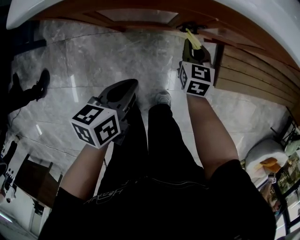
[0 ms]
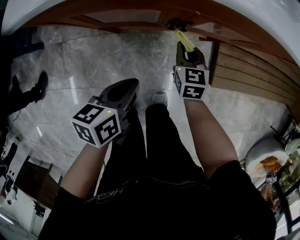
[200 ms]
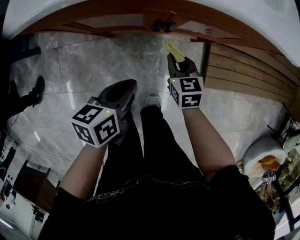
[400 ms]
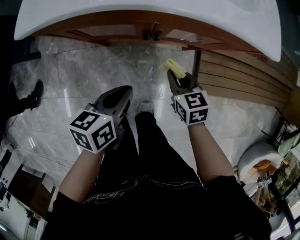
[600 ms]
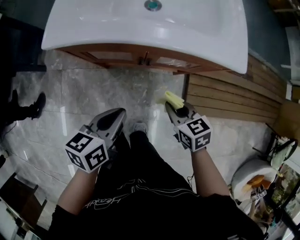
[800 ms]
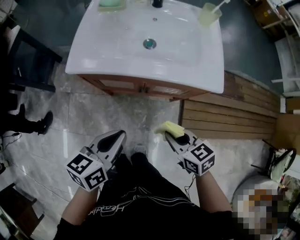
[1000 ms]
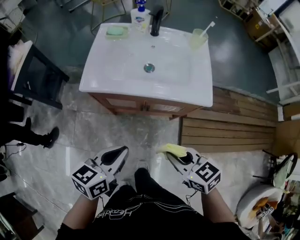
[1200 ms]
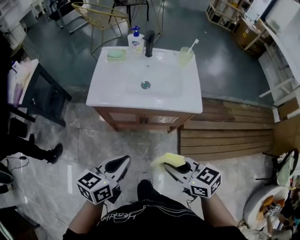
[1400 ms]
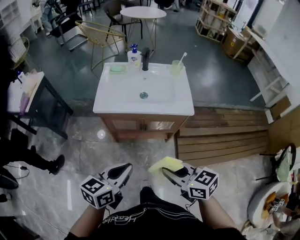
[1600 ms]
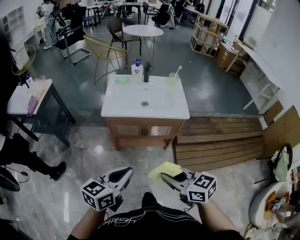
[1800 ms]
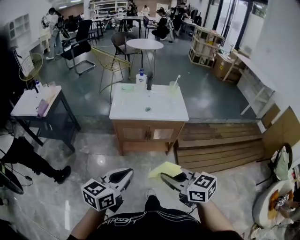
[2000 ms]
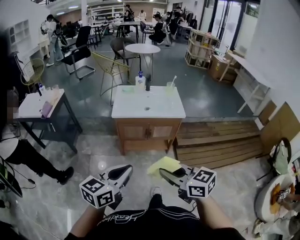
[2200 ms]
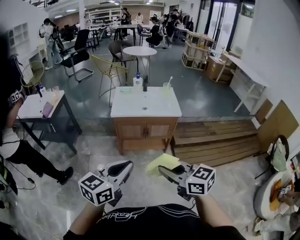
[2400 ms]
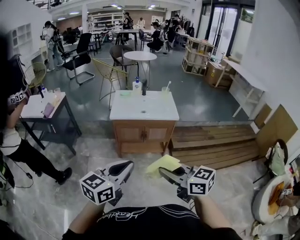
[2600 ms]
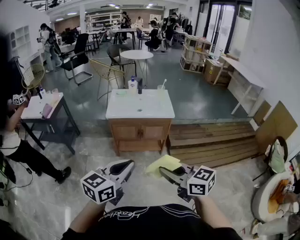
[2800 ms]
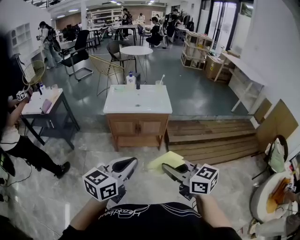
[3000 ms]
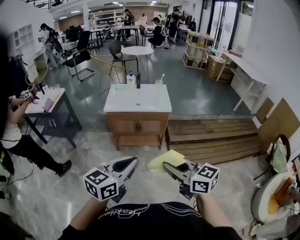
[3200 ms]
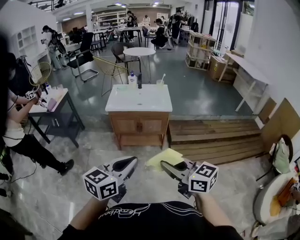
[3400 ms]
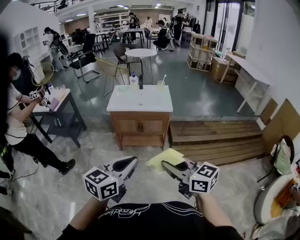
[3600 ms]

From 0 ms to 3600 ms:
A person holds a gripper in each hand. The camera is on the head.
From 0 ms to 1800 ms: Both grippers move upward, roughly 50 cm. The right gripper swivels some 40 degrees. The left gripper swivels approximately 40 degrees.
From 1800 ms to 3600 ms: Both grippers move backward and upward, roughly 30 cm.

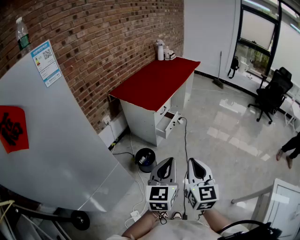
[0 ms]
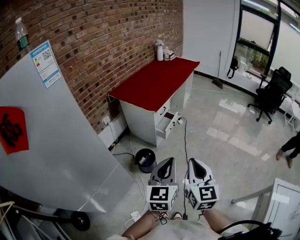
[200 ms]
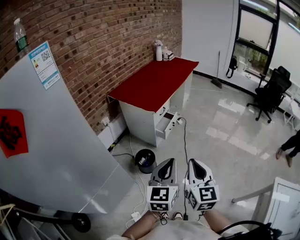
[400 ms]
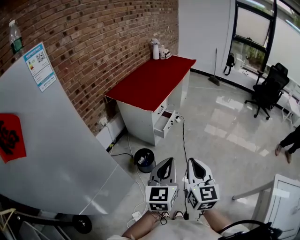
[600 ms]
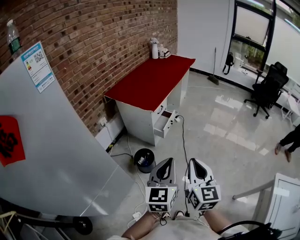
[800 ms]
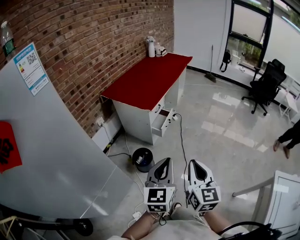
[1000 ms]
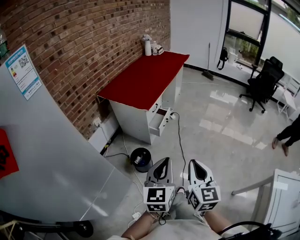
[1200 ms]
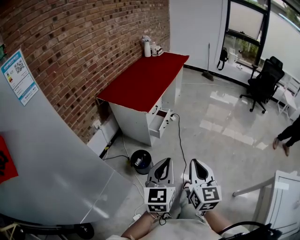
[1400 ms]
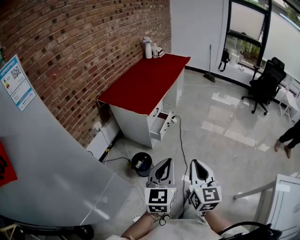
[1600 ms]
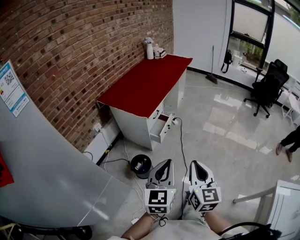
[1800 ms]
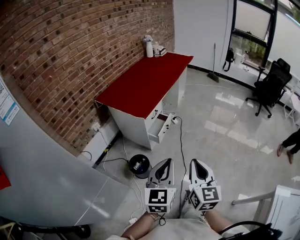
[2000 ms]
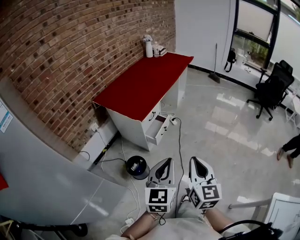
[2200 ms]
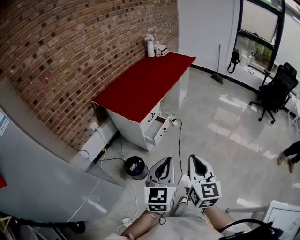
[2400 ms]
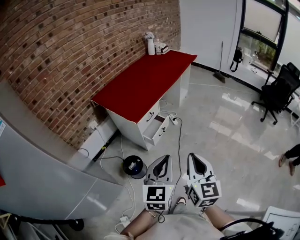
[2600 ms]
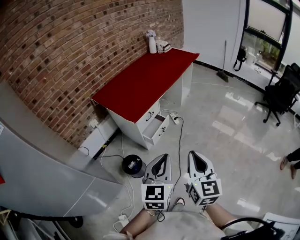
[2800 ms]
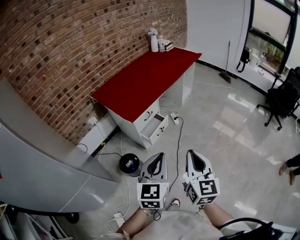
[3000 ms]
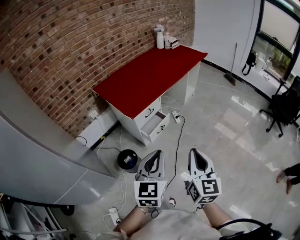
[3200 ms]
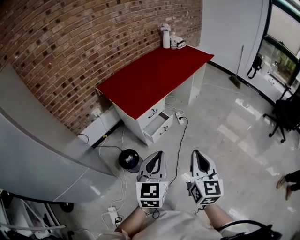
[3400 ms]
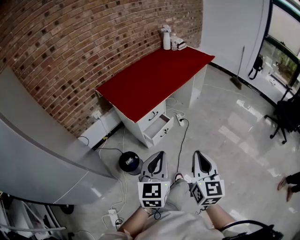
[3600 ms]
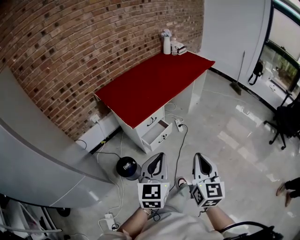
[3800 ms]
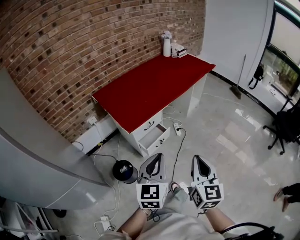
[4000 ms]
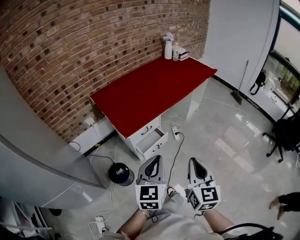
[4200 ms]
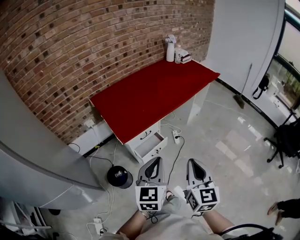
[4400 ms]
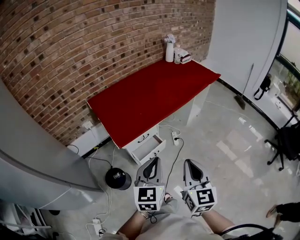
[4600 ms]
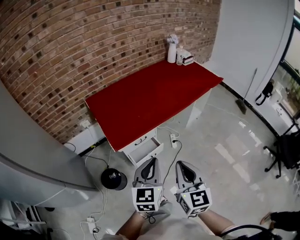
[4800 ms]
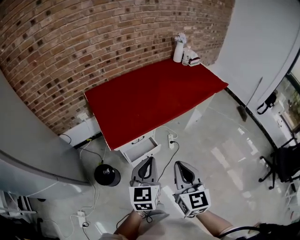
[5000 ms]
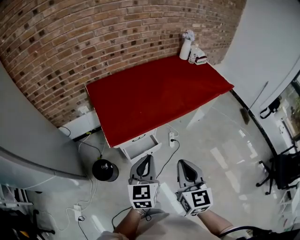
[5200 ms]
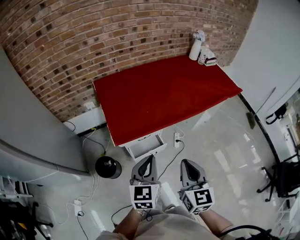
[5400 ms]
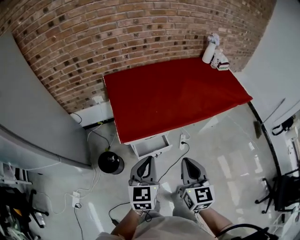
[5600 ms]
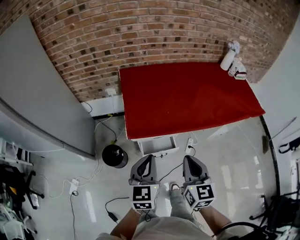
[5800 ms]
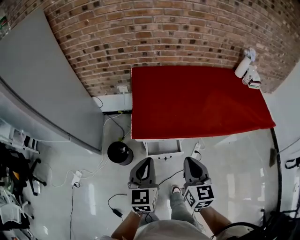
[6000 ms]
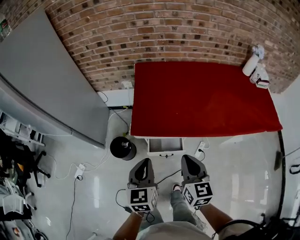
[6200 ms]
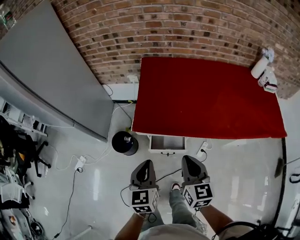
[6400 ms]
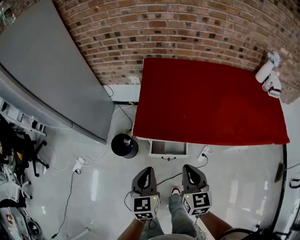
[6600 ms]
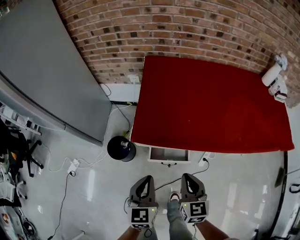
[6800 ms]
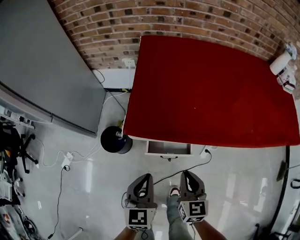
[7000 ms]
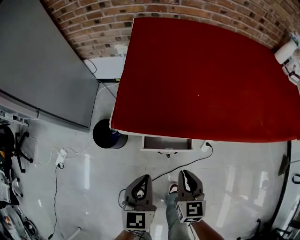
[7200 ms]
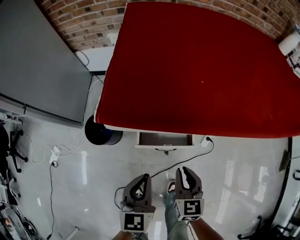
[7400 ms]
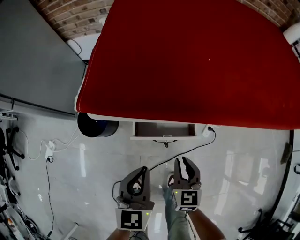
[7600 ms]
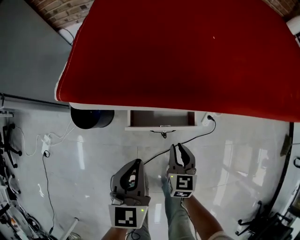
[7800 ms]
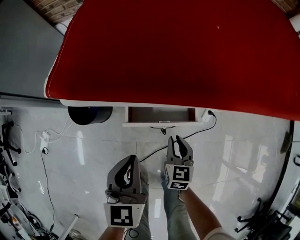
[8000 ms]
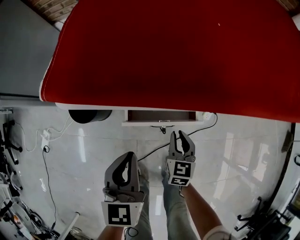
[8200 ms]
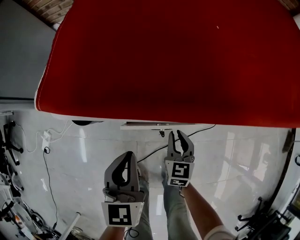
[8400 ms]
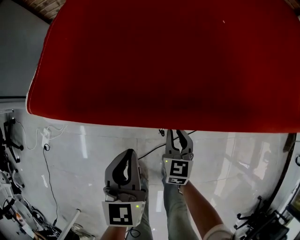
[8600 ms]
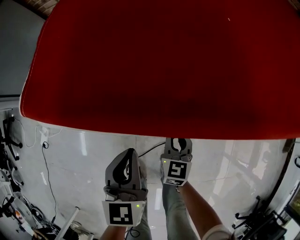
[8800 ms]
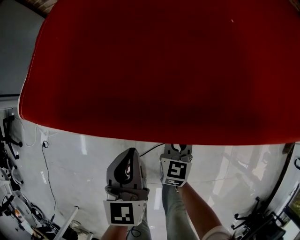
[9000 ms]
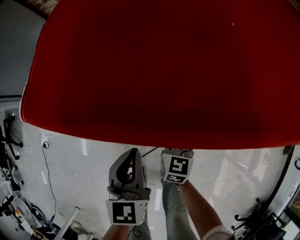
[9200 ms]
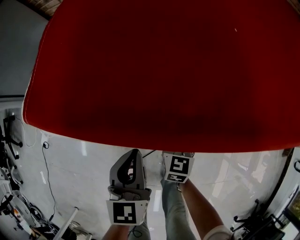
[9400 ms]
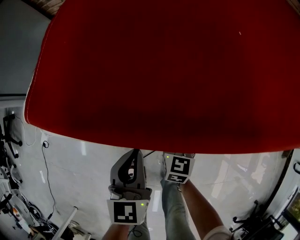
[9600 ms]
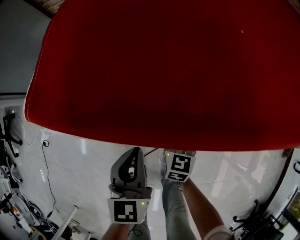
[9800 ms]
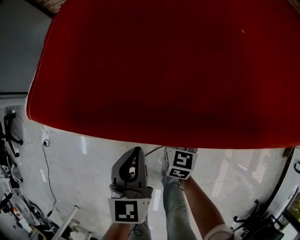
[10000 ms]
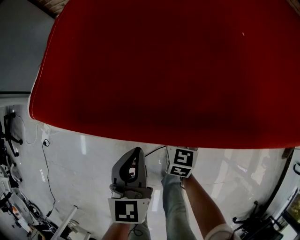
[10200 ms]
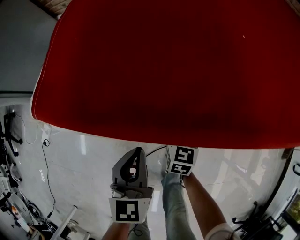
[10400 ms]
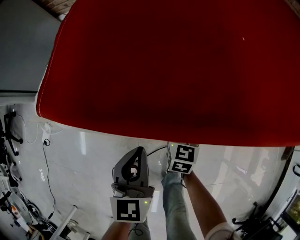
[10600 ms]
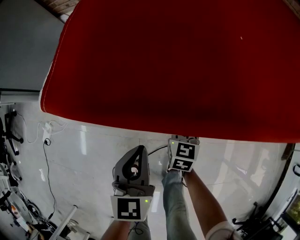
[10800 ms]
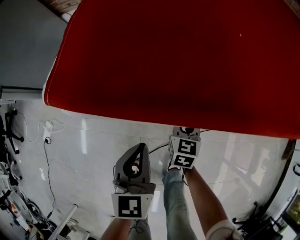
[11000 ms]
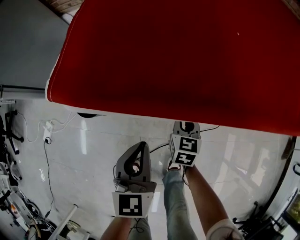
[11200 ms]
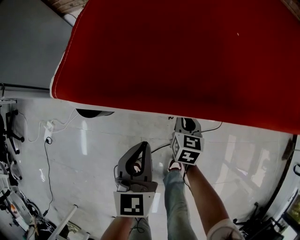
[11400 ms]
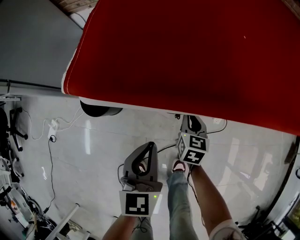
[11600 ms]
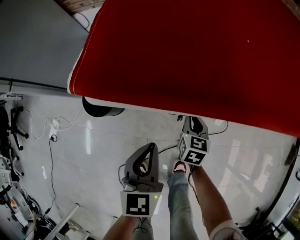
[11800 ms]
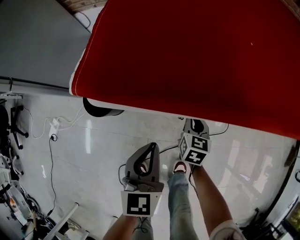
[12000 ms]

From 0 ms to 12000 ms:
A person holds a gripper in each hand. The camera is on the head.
From 0 ms to 1600 ms: The grippers both shift forward by about 5 cm.
From 1600 ms to 3000 ms: The grippers both shift forward and to the right by some 25 cm.
From 3000 ms to 4400 ms: The two grippers go about 20 cm forward.
From 4400 ms to 6000 ms: The left gripper changes place by roughly 15 cm, and changes its angle by roughly 40 degrees, while the right gripper moves roughly 25 cm, and swivels about 40 degrees.
From 6000 ms to 7600 ms: Both grippers travel together downward, roughly 40 cm.
From 7600 ms to 9000 ms: The right gripper shifts some 10 cm downward and forward. The left gripper shifts by about 5 cm.
From 9000 ms to 10400 ms: The right gripper heads forward, covering some 5 cm.
From 10400 ms to 12000 ms: There are only small adjustments of the grippers.

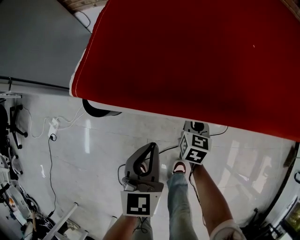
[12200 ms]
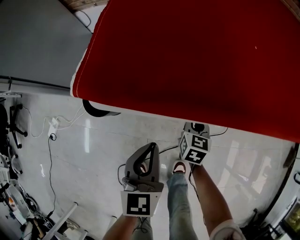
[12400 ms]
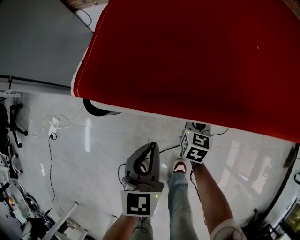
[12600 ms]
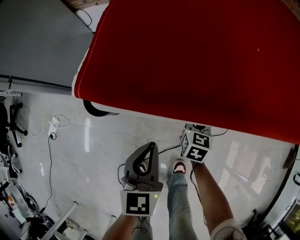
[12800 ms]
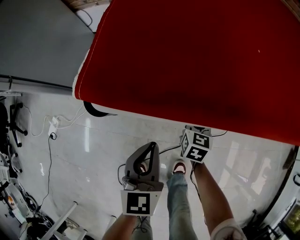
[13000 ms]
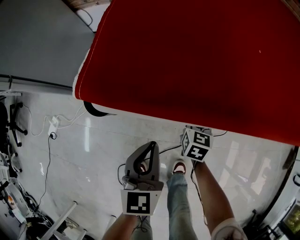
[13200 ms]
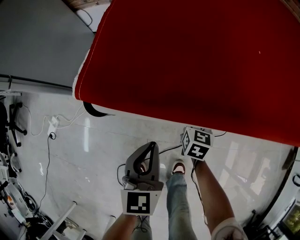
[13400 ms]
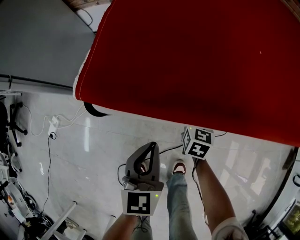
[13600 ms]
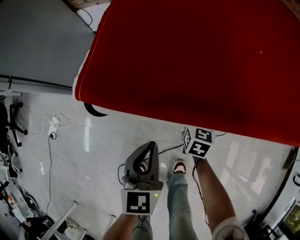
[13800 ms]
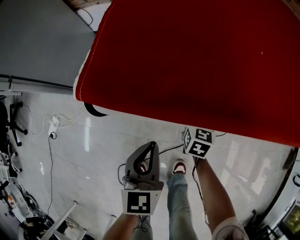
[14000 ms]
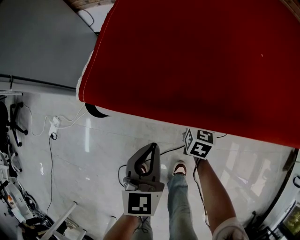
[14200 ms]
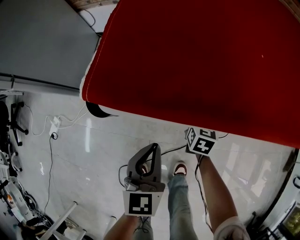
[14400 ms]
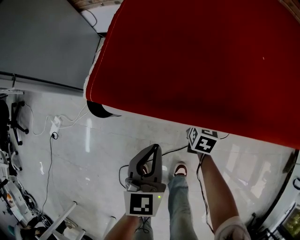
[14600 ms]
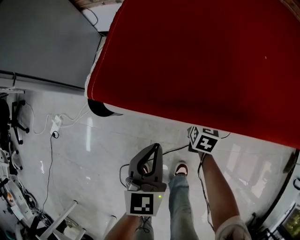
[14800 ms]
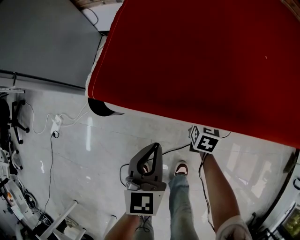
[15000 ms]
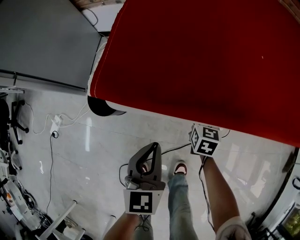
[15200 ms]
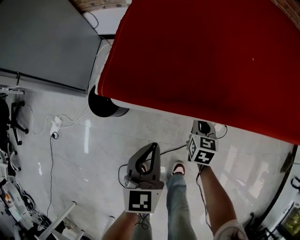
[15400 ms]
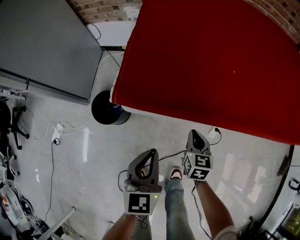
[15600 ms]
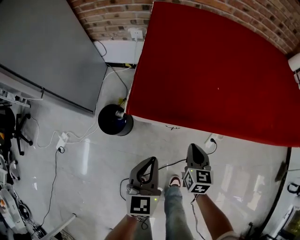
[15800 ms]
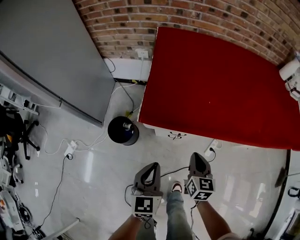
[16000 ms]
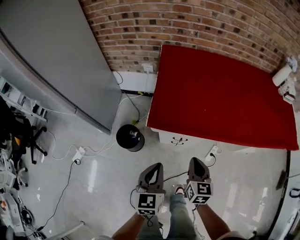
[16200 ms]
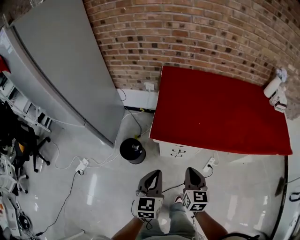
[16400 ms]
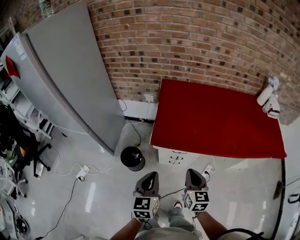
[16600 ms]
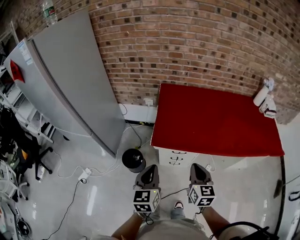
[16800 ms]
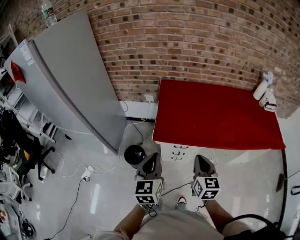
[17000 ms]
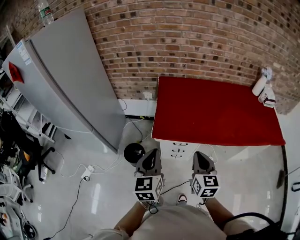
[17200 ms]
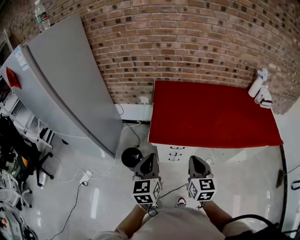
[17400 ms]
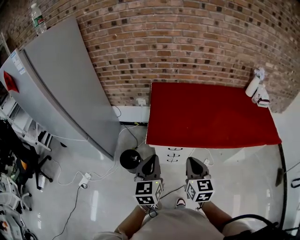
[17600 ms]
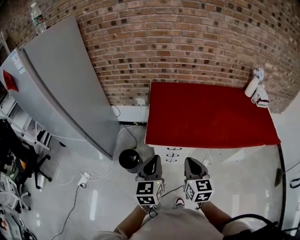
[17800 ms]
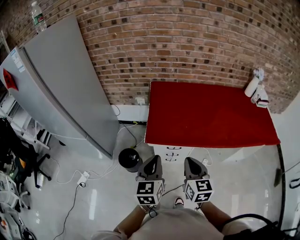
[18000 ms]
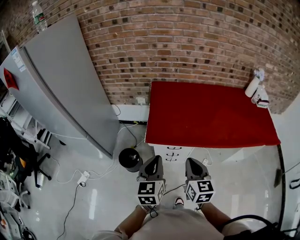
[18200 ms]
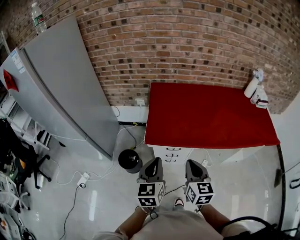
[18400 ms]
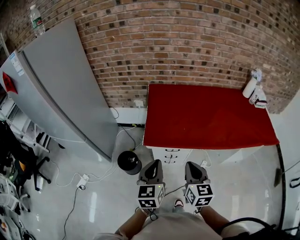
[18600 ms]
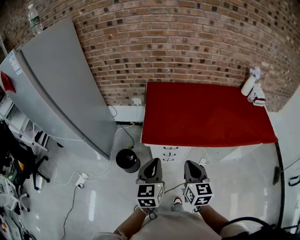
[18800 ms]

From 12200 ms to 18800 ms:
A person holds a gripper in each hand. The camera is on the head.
From 12200 ms to 15400 ms: The grippers move only a little.
From 15400 ms to 17200 ms: Both grippers travel together upward, some 50 cm. The right gripper rotates approximately 30 degrees.
From 17200 ms to 18800 ms: The left gripper is displaced to the right by about 5 cm.

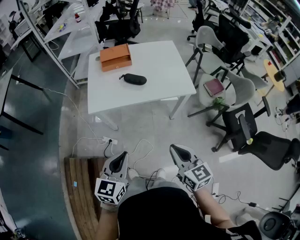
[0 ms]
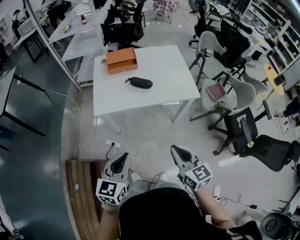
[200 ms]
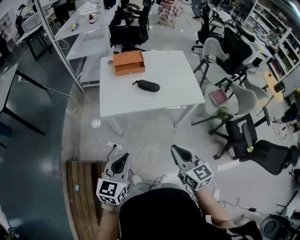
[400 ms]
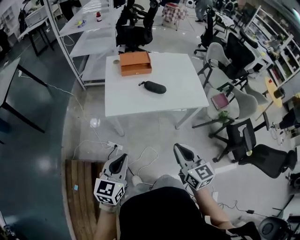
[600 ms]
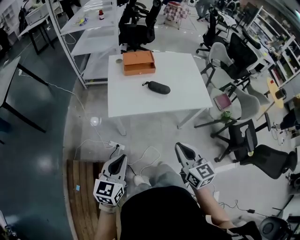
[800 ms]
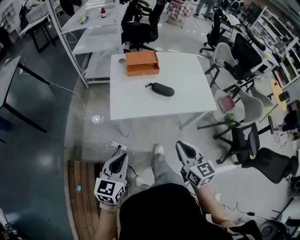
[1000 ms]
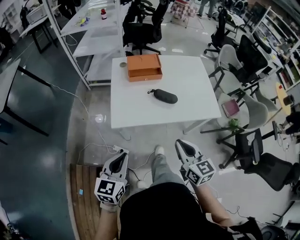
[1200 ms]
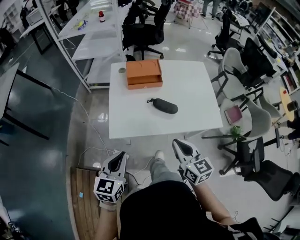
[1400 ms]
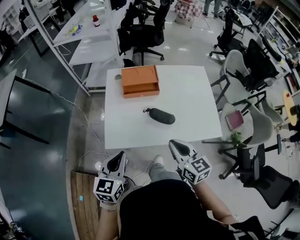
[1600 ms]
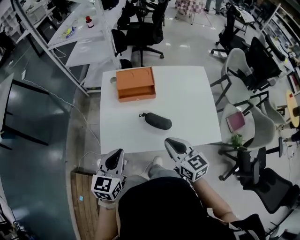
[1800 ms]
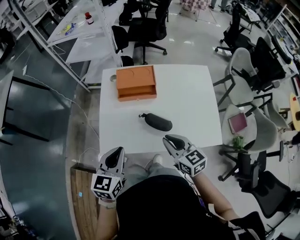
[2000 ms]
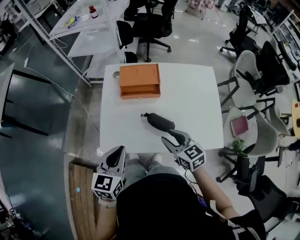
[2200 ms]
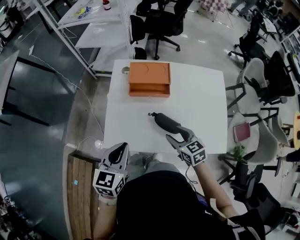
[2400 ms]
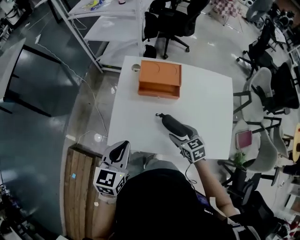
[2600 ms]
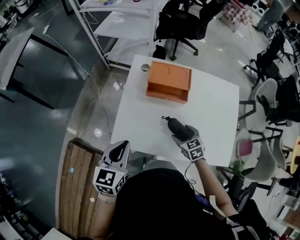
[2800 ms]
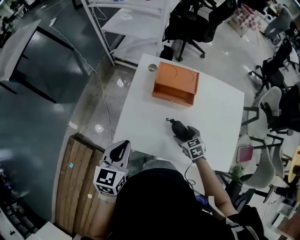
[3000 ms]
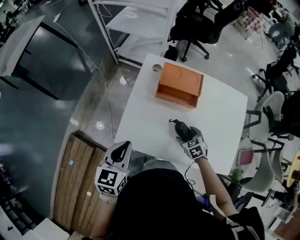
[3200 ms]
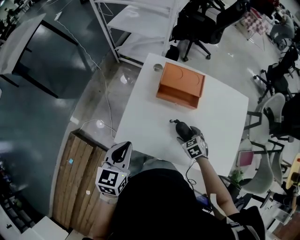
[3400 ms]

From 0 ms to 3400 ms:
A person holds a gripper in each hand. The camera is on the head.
From 0 ms to 1600 ms: The right gripper is displaced forward by some 35 cm; the left gripper travels forward and to the left by roughly 30 cm.
From 1600 ms to 3400 ms: The left gripper is displaced forward by some 10 cm, and turns by about 20 degrees; the right gripper moves downward and forward, about 30 cm, tips its fingers downward by approximately 50 degrees, and opens up.
